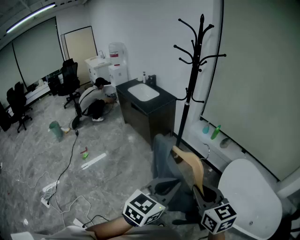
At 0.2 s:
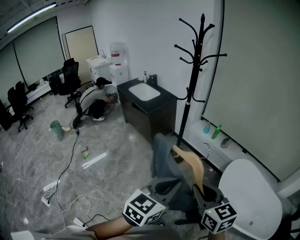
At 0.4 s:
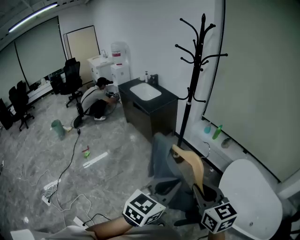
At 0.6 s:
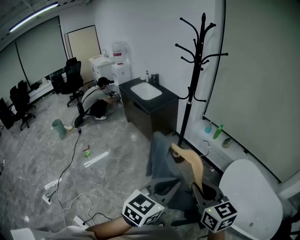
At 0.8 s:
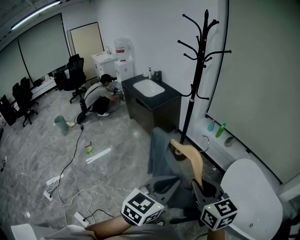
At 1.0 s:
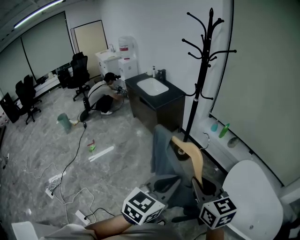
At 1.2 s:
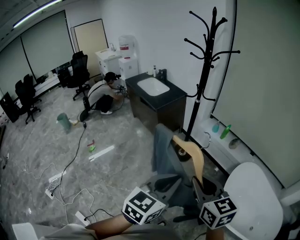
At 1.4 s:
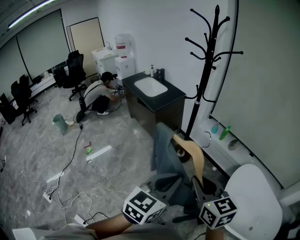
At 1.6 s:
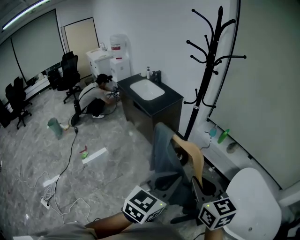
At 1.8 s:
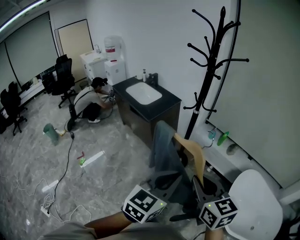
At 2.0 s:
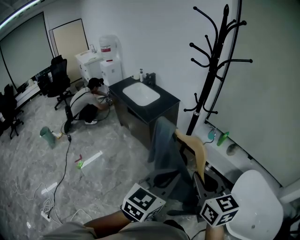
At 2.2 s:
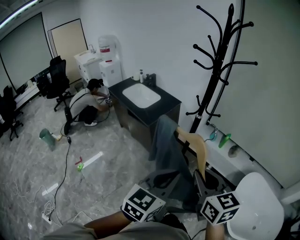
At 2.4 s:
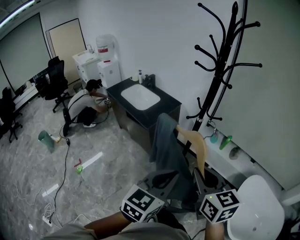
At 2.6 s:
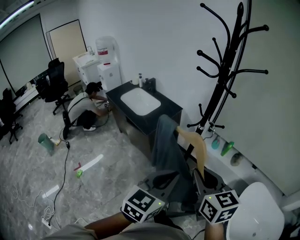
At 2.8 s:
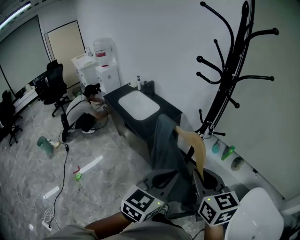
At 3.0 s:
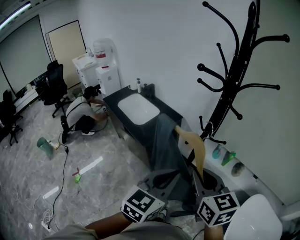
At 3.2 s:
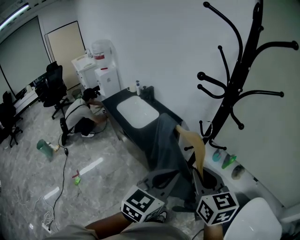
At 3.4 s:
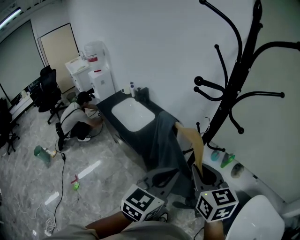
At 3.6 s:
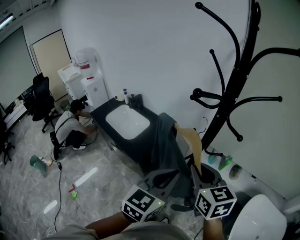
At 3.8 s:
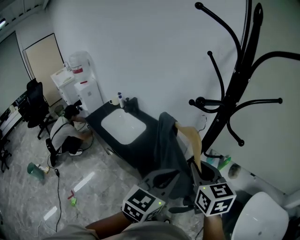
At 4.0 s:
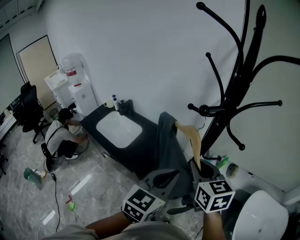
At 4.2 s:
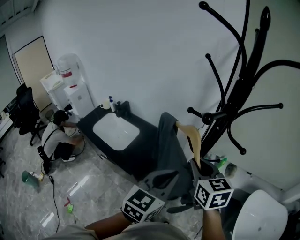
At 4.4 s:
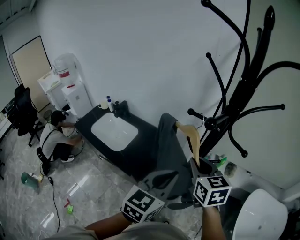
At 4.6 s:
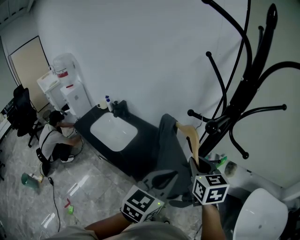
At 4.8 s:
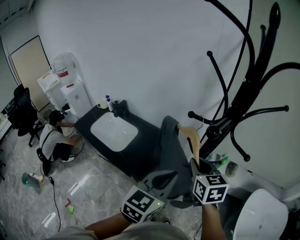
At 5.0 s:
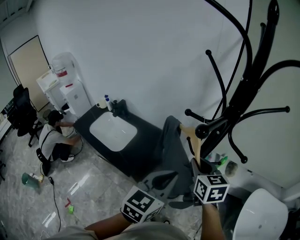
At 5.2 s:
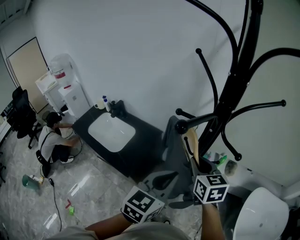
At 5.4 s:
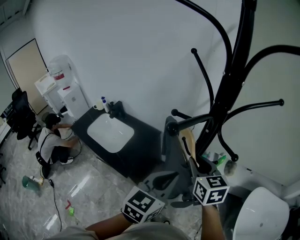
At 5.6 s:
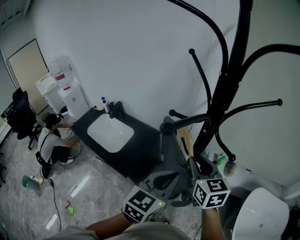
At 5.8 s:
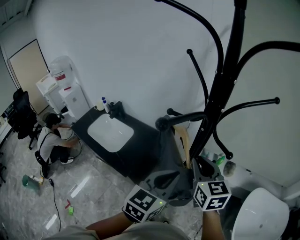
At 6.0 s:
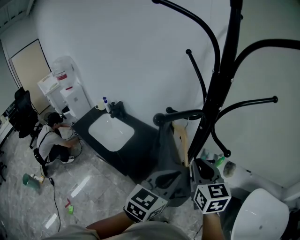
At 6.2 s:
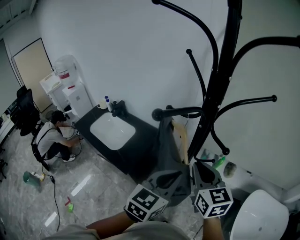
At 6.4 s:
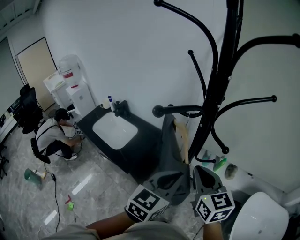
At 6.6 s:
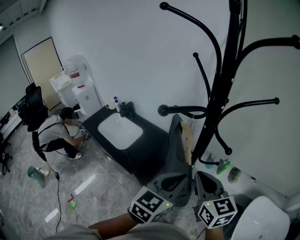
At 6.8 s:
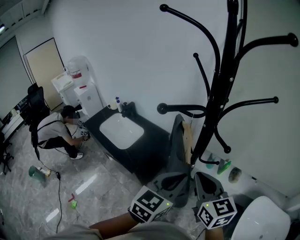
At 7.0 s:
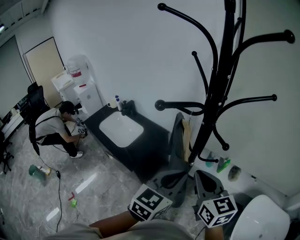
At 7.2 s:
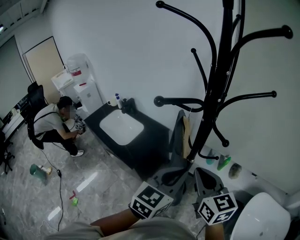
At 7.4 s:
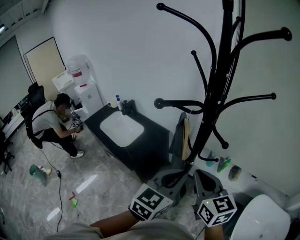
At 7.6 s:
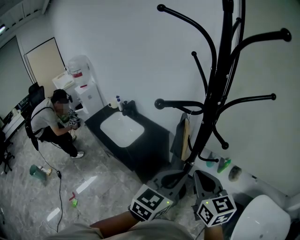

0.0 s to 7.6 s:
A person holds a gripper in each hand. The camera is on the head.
0.0 to 1.6 s: Both grippers move forward and to the left, some 15 cm.
1.6 to 3.0 s: Both grippers move forward, about 35 cm.
3.0 to 4.6 s: Both grippers travel together forward, some 20 cm.
4.6 to 6.0 s: The two grippers go roughly 5 cm to the right.
6.0 to 7.6 s: The right gripper moves backward, roughly 5 cm.

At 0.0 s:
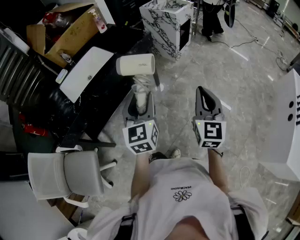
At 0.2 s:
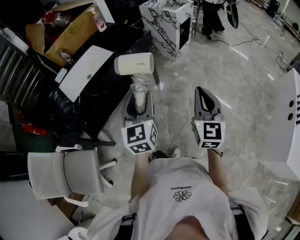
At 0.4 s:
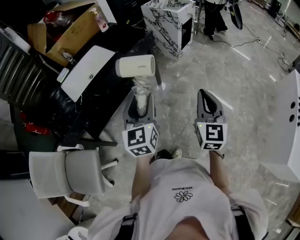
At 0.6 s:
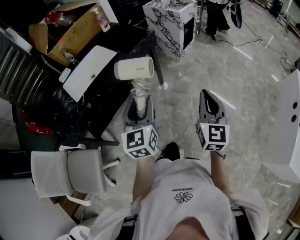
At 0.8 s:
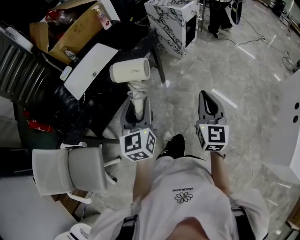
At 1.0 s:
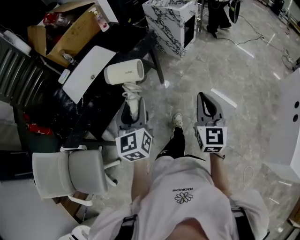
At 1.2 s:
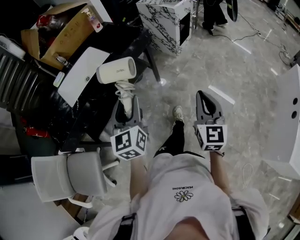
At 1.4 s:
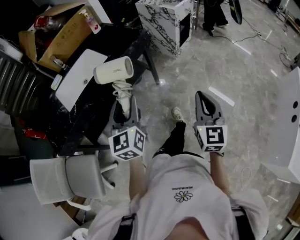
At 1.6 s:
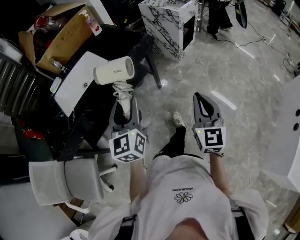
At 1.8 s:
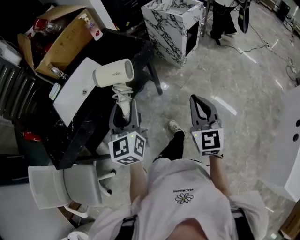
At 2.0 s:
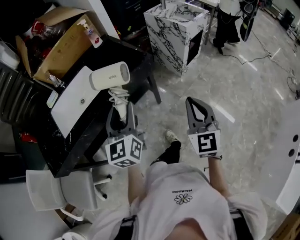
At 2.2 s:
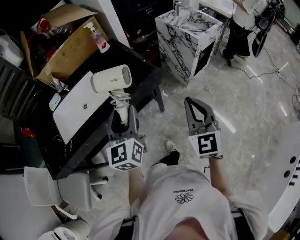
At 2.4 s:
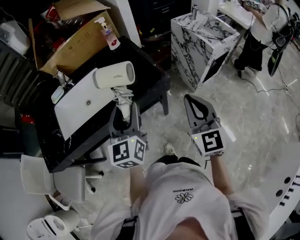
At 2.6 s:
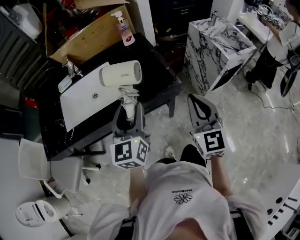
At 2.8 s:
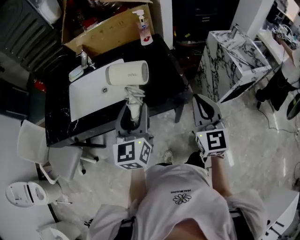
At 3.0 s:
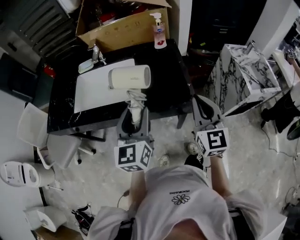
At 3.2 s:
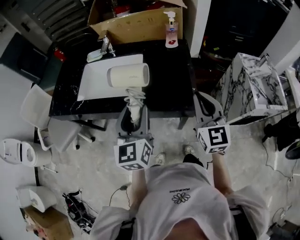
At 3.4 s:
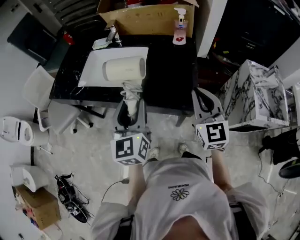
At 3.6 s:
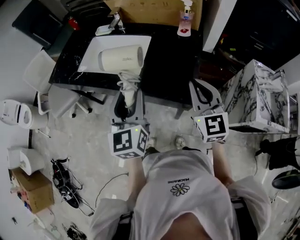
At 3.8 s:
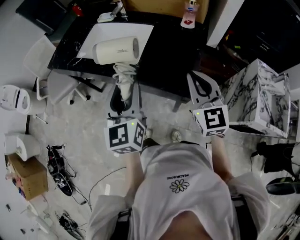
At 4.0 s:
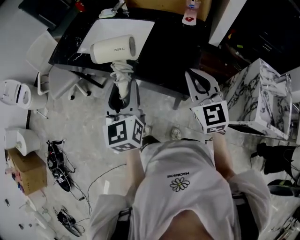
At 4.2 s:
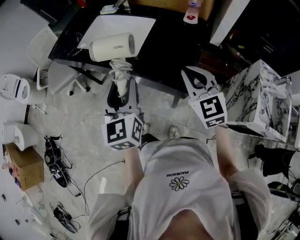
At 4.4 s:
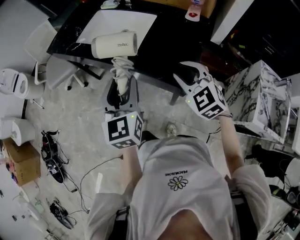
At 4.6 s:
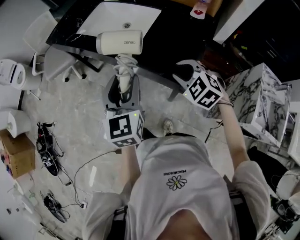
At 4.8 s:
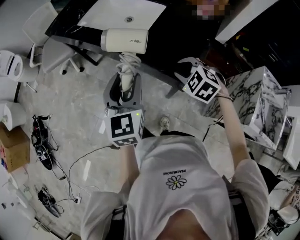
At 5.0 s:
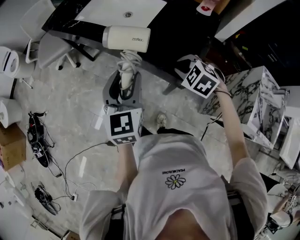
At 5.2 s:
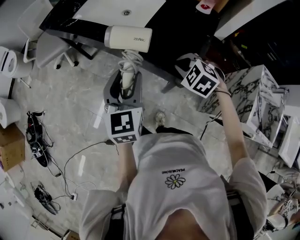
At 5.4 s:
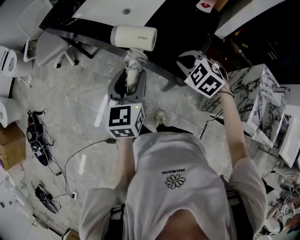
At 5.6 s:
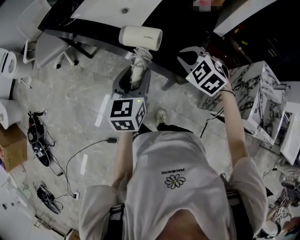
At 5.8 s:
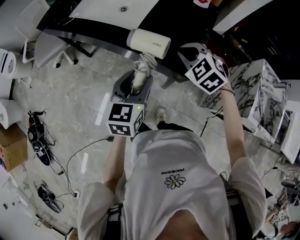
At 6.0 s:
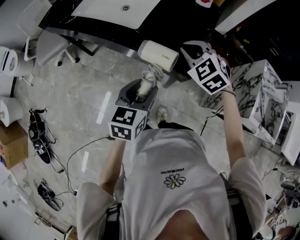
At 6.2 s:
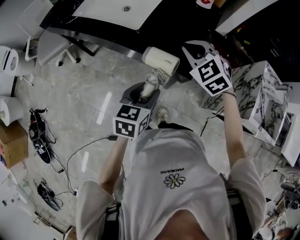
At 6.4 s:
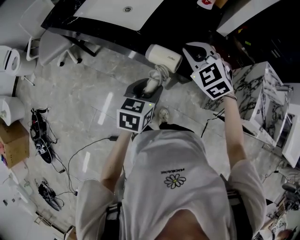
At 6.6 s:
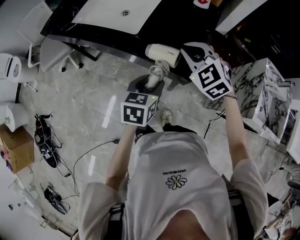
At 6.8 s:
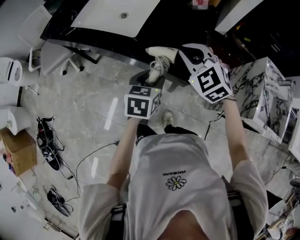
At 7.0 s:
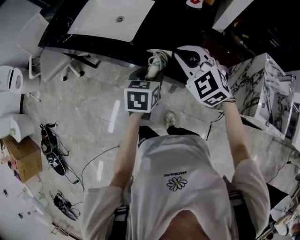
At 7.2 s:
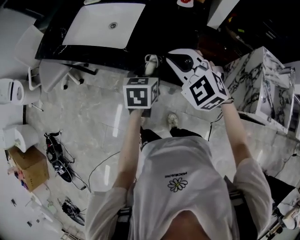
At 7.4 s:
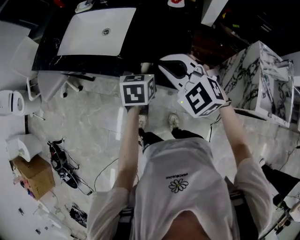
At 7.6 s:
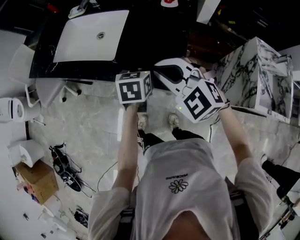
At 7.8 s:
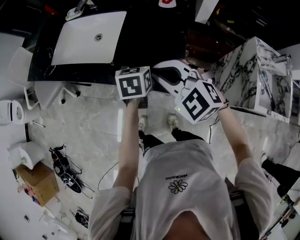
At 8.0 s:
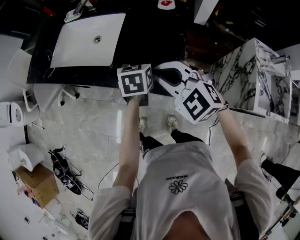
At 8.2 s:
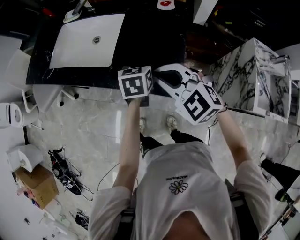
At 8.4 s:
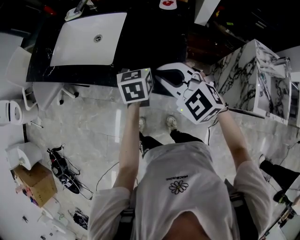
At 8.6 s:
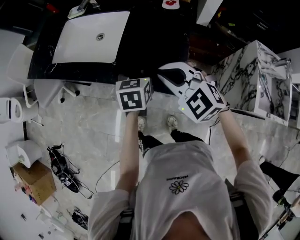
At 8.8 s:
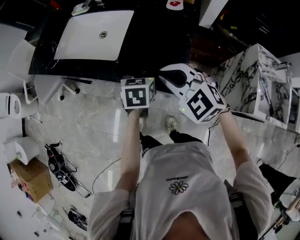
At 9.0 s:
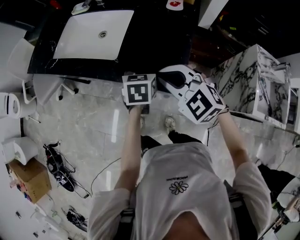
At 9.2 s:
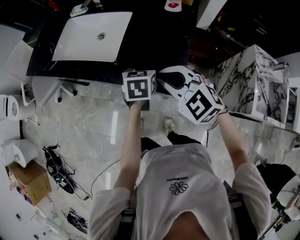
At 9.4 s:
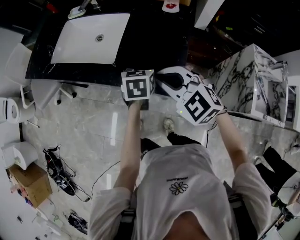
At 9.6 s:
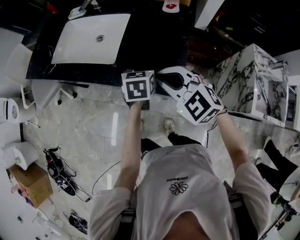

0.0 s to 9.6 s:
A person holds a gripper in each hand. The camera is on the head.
0.0 to 1.6 s: The right gripper travels forward and downward by about 10 cm. The left gripper heads forward, covering some 10 cm.
1.6 to 3.2 s: The left gripper changes place by roughly 30 cm, and swivels approximately 50 degrees. Meanwhile the right gripper changes place by approximately 50 cm, and changes its angle by approximately 60 degrees.
3.2 to 4.8 s: The right gripper heads downward, covering about 15 cm, and tilts its fingers about 50 degrees downward. The left gripper ends up some 10 cm from where it was, and rotates approximately 30 degrees.
4.8 to 6.4 s: The left gripper heads downward and to the right, covering some 15 cm, and turns by about 40 degrees; the right gripper goes about 5 cm upward, and turns by approximately 20 degrees.
6.4 to 8.0 s: The left gripper heads forward, covering approximately 20 cm.
8.0 to 9.6 s: There are only small adjustments of the grippers.

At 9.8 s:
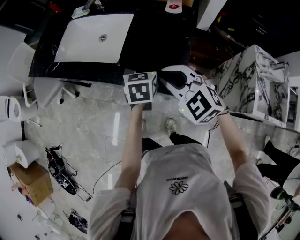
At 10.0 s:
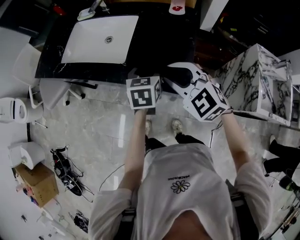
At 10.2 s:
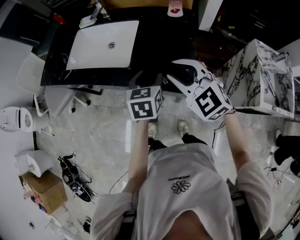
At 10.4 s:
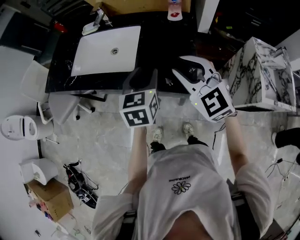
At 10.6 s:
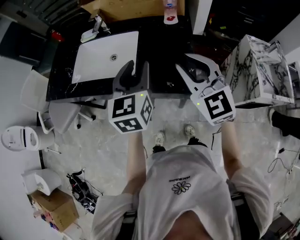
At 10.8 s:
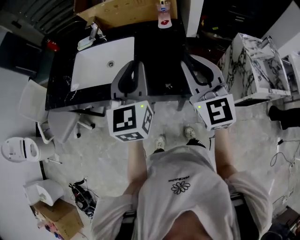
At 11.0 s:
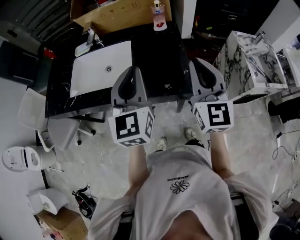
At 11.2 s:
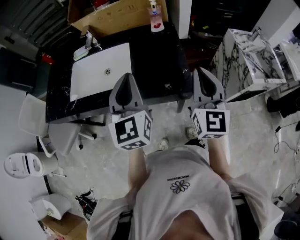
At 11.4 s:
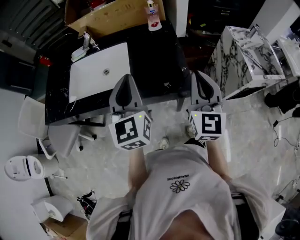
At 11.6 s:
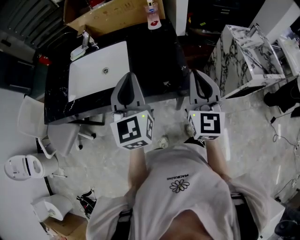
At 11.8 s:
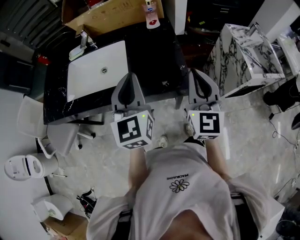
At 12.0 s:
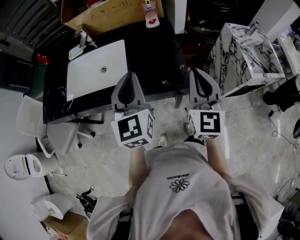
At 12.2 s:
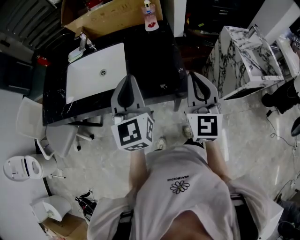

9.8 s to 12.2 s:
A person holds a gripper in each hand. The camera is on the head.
9.8 to 11.0 s: The right gripper heads upward, covering about 15 cm, and points its fingers roughly 30 degrees further upward; the left gripper moves upward, approximately 25 cm, tilts its fingers approximately 40 degrees upward, and closes.
11.0 to 12.2 s: The grippers move only a little.

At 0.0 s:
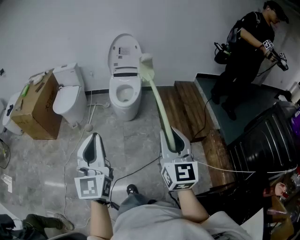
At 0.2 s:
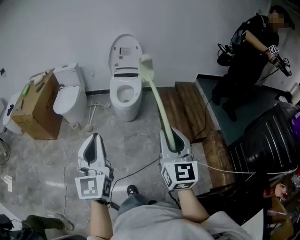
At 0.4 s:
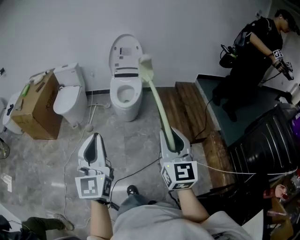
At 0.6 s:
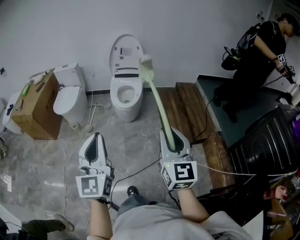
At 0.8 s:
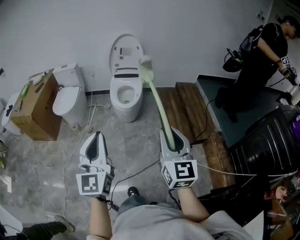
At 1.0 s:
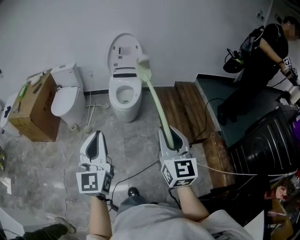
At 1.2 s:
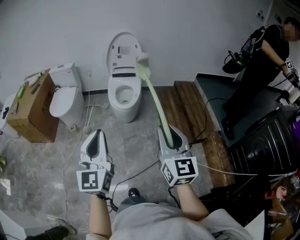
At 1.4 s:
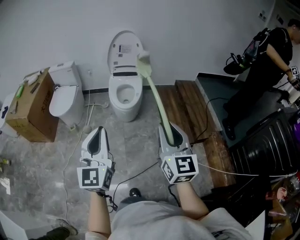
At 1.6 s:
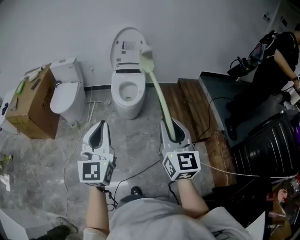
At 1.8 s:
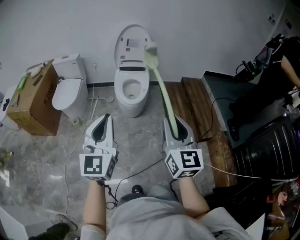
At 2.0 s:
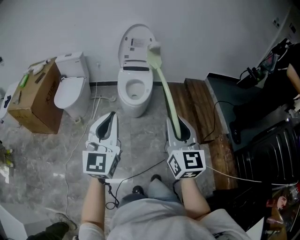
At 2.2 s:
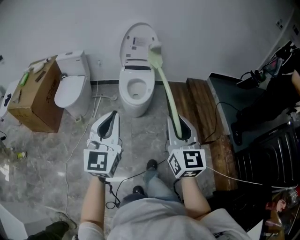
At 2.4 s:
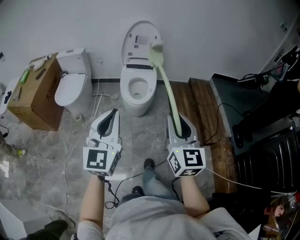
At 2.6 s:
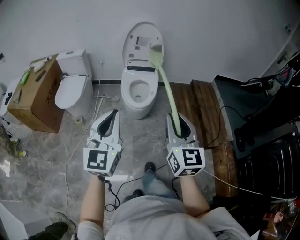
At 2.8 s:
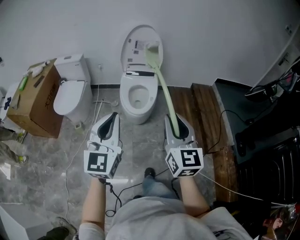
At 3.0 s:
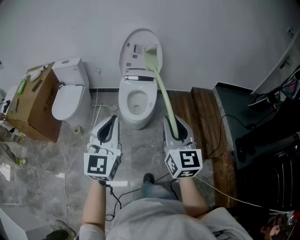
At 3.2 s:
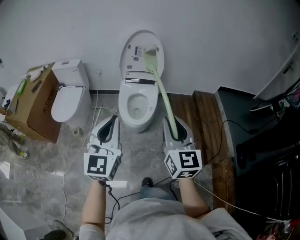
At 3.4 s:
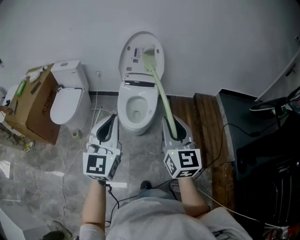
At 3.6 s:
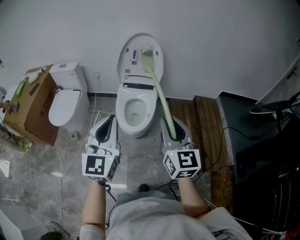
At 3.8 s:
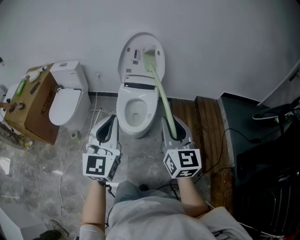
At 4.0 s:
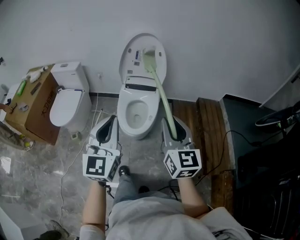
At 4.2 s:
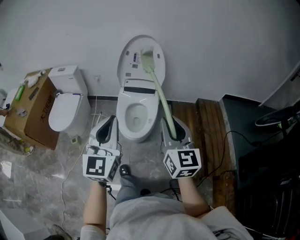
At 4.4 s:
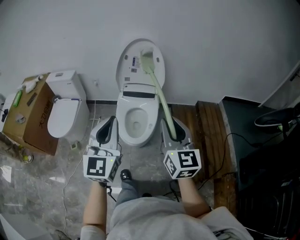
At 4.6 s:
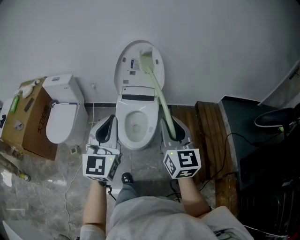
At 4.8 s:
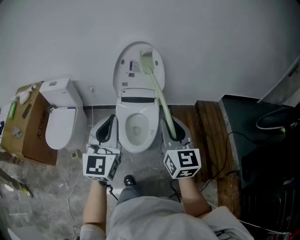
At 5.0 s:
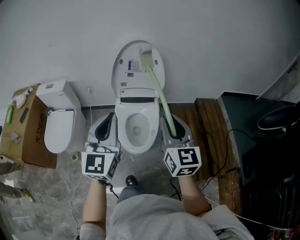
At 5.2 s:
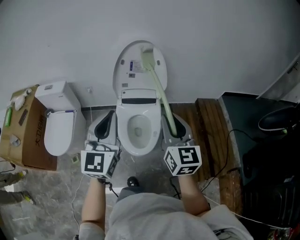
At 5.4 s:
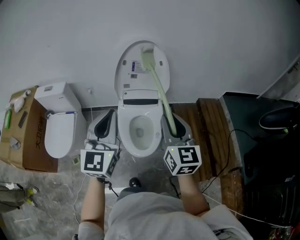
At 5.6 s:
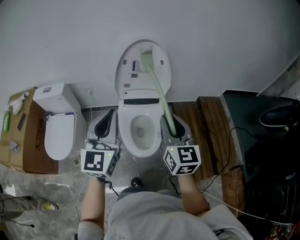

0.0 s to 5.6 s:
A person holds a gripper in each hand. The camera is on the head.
0.0 to 1.4 s: Both grippers travel together forward, some 10 cm.
1.4 to 2.8 s: Both grippers move forward, some 20 cm.
2.8 to 4.2 s: Both grippers travel together forward, some 20 cm.
4.2 to 5.6 s: The two grippers go about 25 cm forward and to the left.
